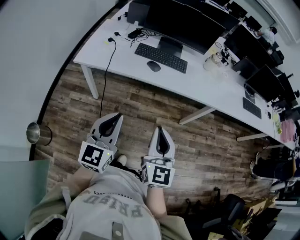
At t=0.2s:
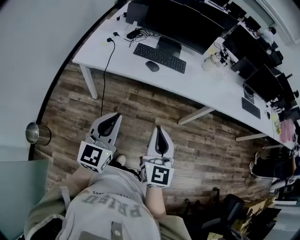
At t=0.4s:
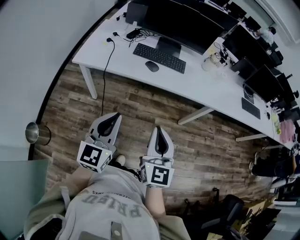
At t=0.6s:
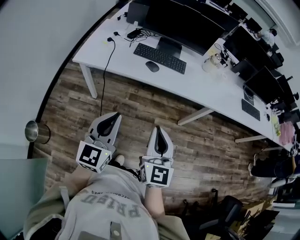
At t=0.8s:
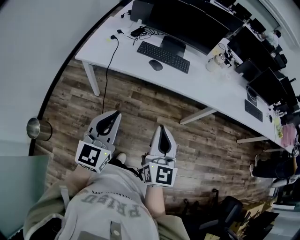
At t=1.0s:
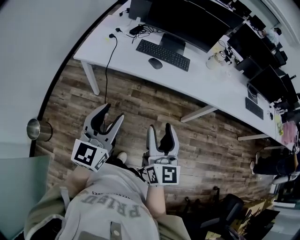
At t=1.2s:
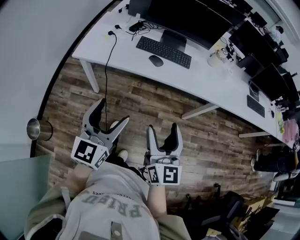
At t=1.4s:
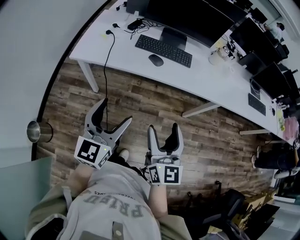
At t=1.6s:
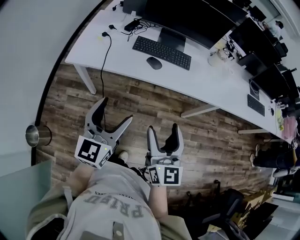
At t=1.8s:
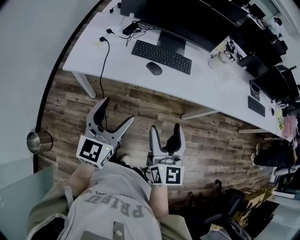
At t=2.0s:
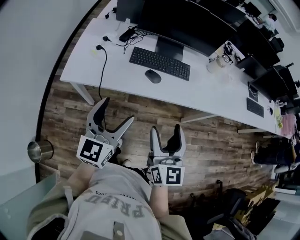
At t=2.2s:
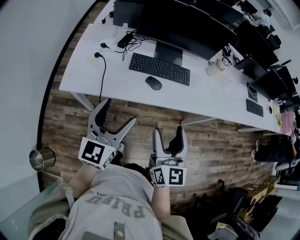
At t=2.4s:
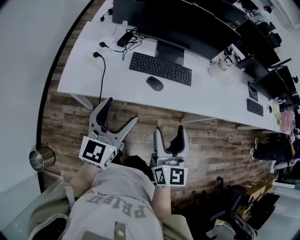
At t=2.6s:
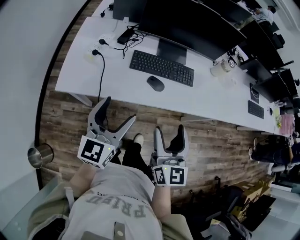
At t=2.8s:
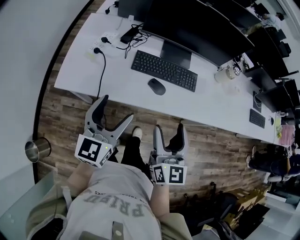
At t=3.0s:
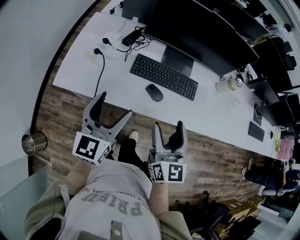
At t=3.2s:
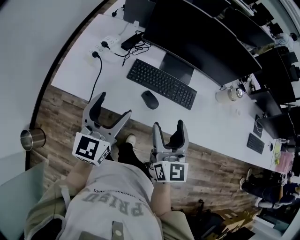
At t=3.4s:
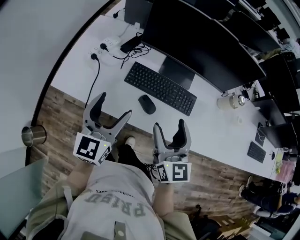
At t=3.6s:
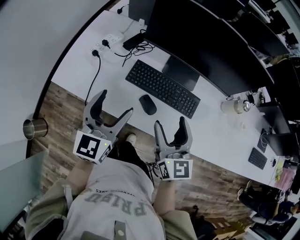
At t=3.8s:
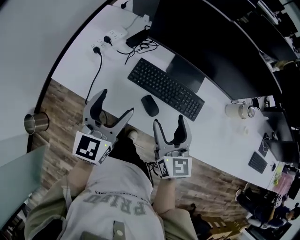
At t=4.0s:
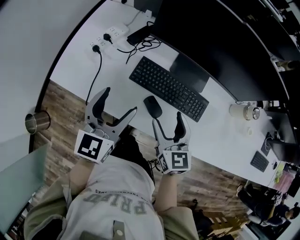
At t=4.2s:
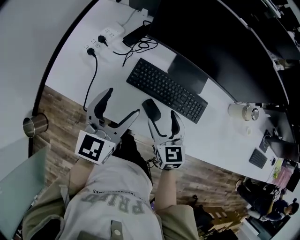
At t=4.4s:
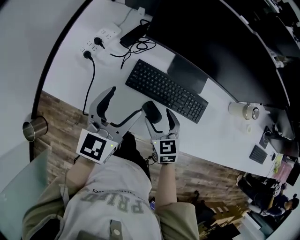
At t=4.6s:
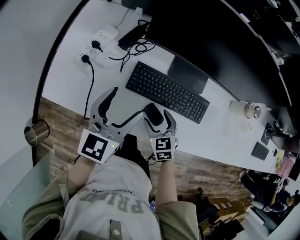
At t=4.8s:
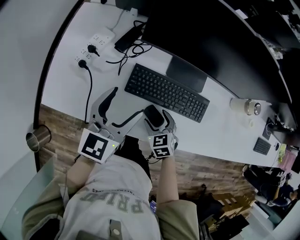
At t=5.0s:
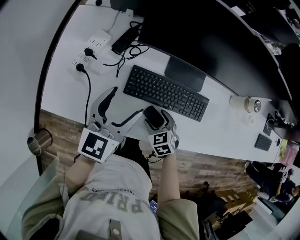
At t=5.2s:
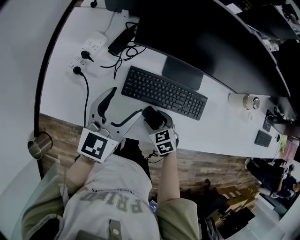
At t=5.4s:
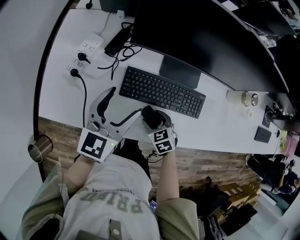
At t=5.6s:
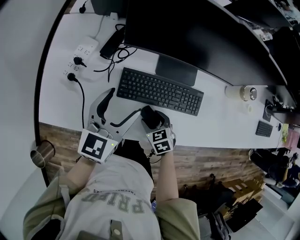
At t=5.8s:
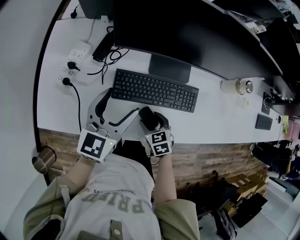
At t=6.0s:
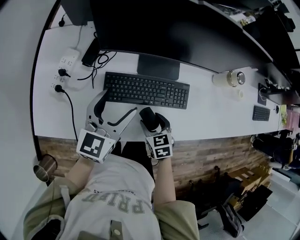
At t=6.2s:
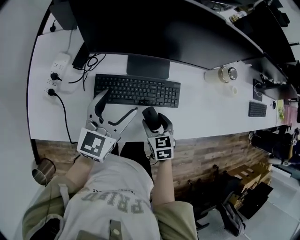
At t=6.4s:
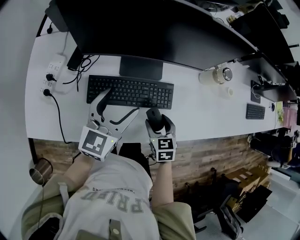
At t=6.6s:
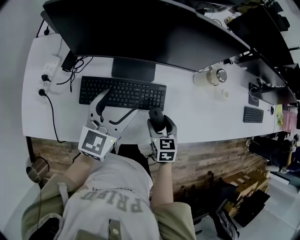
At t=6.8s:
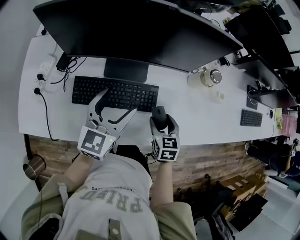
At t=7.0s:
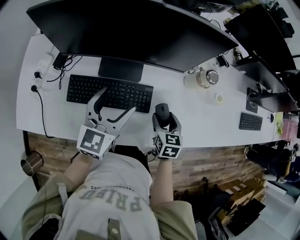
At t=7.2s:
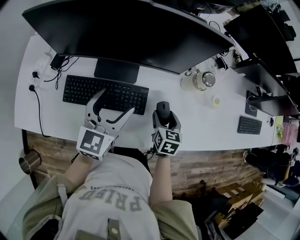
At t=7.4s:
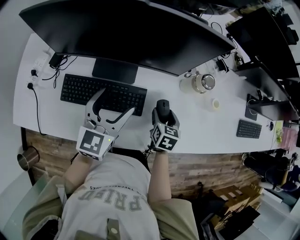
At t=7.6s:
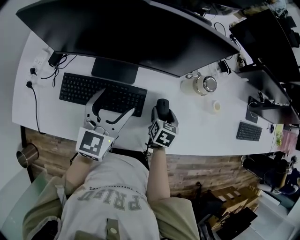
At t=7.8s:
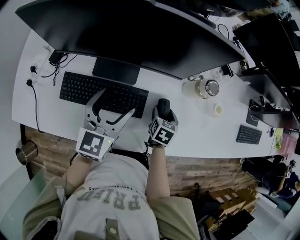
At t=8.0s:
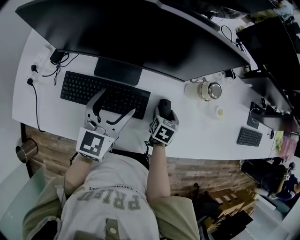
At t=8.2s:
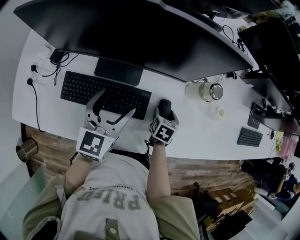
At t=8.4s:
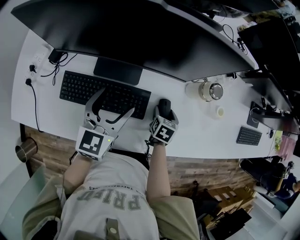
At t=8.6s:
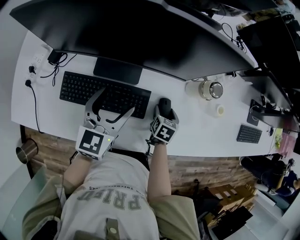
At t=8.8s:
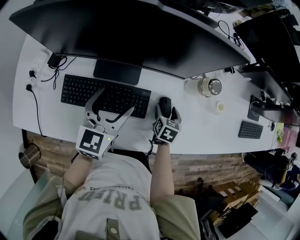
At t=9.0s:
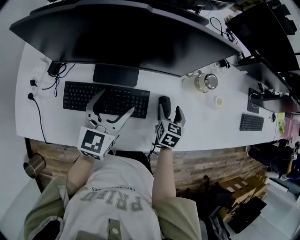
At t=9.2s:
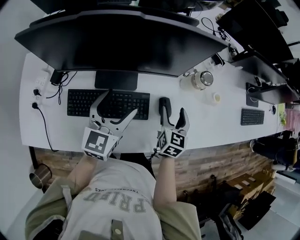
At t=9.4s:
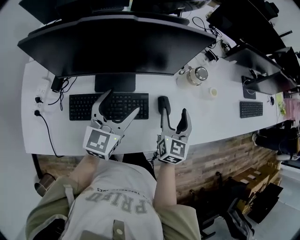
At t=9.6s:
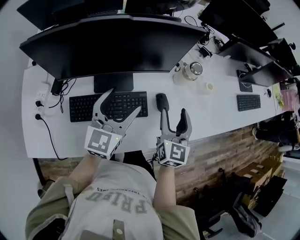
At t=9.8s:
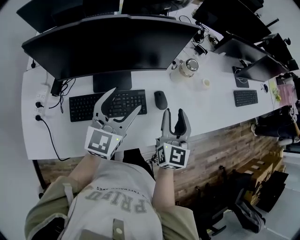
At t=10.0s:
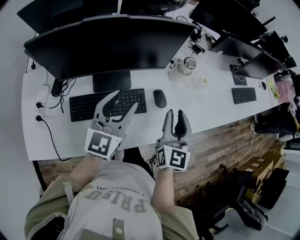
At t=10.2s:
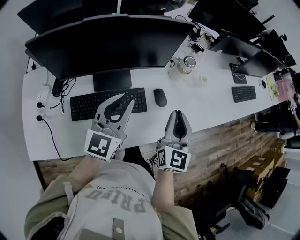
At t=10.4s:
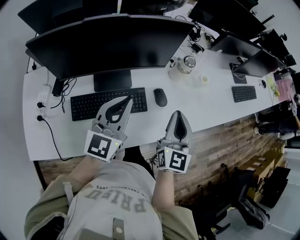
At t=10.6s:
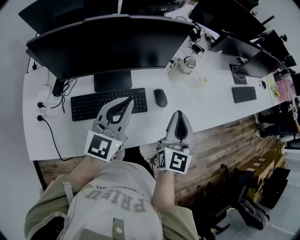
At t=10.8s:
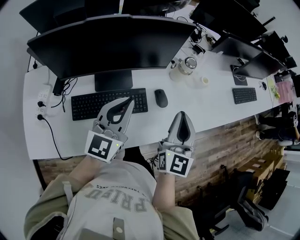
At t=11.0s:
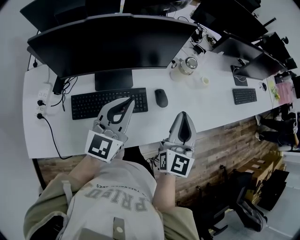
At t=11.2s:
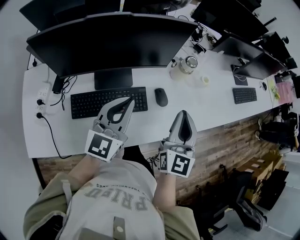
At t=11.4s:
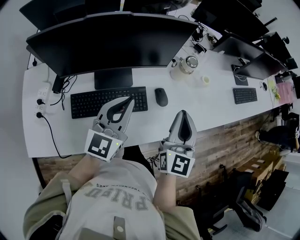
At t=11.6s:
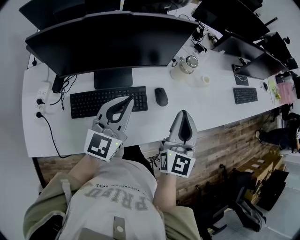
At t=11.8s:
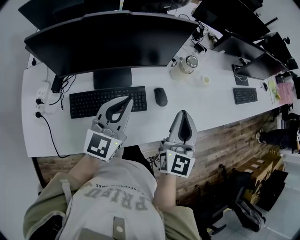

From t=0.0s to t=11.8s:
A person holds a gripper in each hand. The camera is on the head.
From t=0.0s to t=1.4s: The right gripper opens up. The left gripper heads forward, covering some 5 cm, and opens.
From t=1.4s to t=3.0s: The grippers both shift forward by some 30 cm.
From t=3.0s to t=4.4s: The left gripper travels forward by approximately 15 cm; the right gripper moves downward and forward, about 25 cm, and points its fingers some 30 degrees further downward.
From t=4.4s to t=6.0s: The left gripper heads to the right, covering some 5 cm; the right gripper shifts about 5 cm downward, and swivels roughly 20 degrees.
From t=6.0s to t=7.4s: The left gripper heads to the right, covering about 20 cm. The right gripper is displaced to the right and forward by some 30 cm, and turns by approximately 30 degrees.
From t=7.4s to t=8.8s: The right gripper moves downward, some 5 cm.
From t=8.8s to t=10.4s: The left gripper travels upward by approximately 15 cm, swivels about 30 degrees, and closes its fingers. The right gripper heads upward and backward, covering roughly 30 cm, angles its fingers upward, by roughly 50 degrees, and closes up.
From t=10.4s to t=11.8s: The grippers make only small movements.

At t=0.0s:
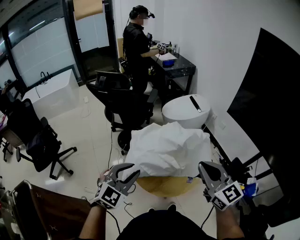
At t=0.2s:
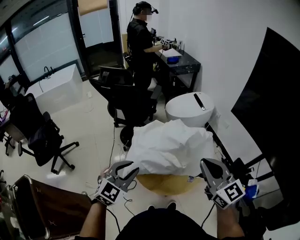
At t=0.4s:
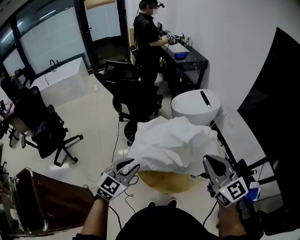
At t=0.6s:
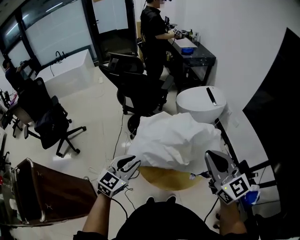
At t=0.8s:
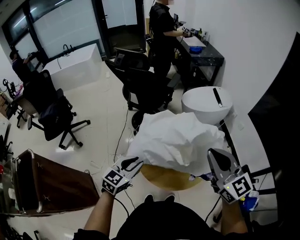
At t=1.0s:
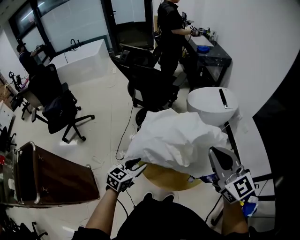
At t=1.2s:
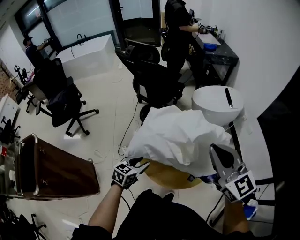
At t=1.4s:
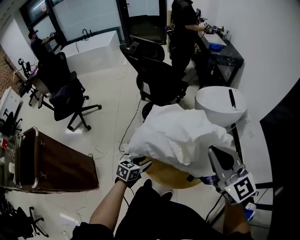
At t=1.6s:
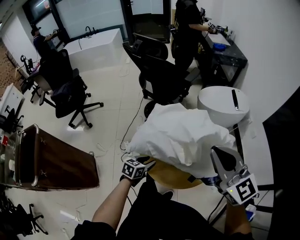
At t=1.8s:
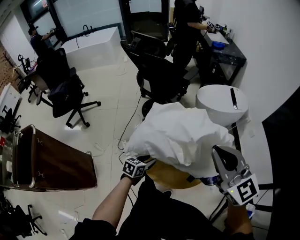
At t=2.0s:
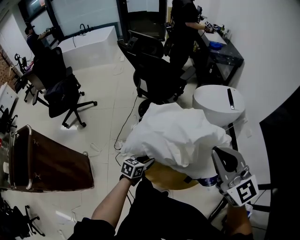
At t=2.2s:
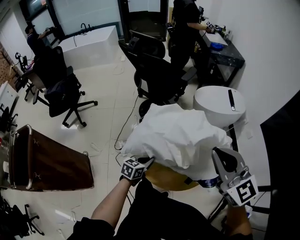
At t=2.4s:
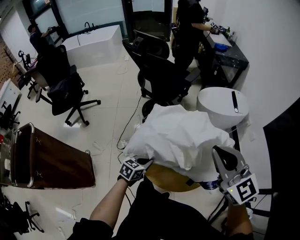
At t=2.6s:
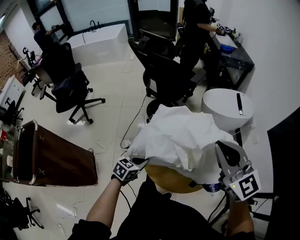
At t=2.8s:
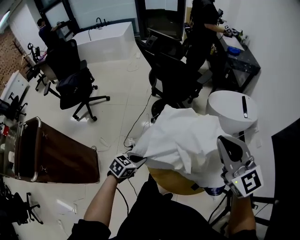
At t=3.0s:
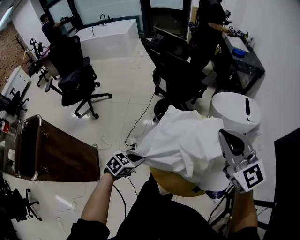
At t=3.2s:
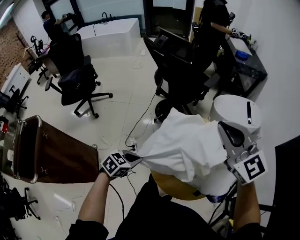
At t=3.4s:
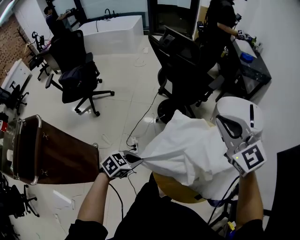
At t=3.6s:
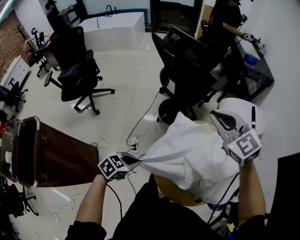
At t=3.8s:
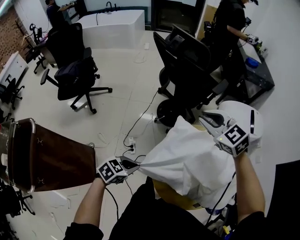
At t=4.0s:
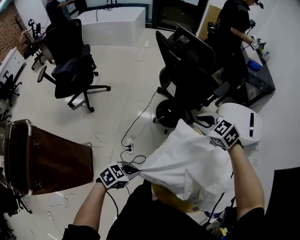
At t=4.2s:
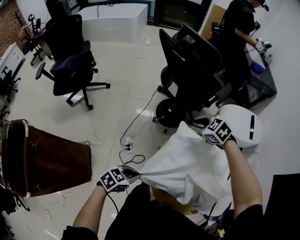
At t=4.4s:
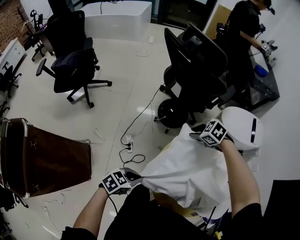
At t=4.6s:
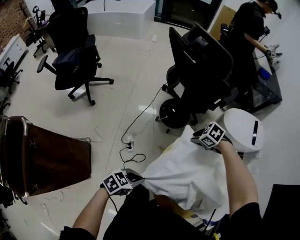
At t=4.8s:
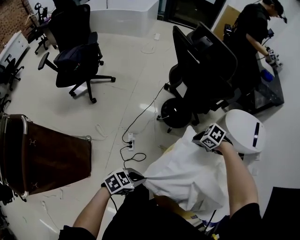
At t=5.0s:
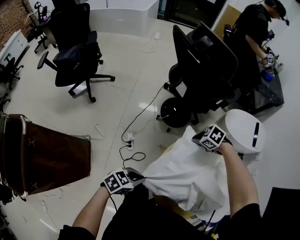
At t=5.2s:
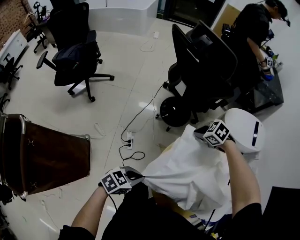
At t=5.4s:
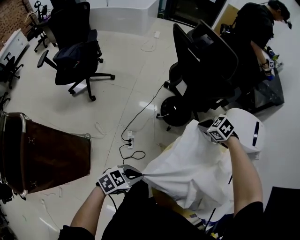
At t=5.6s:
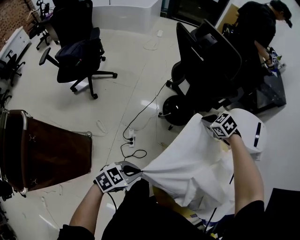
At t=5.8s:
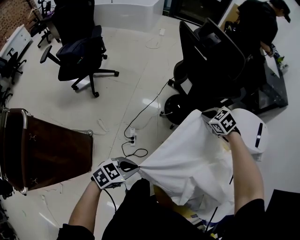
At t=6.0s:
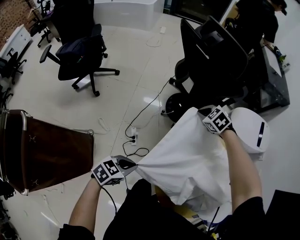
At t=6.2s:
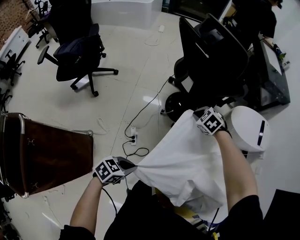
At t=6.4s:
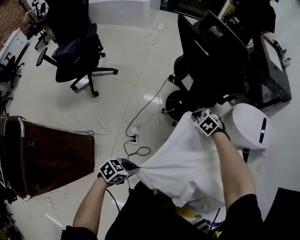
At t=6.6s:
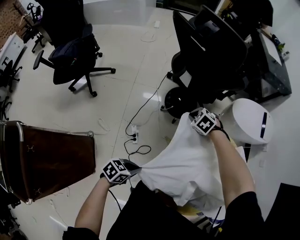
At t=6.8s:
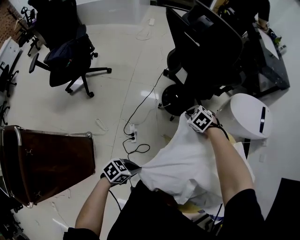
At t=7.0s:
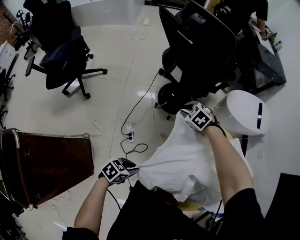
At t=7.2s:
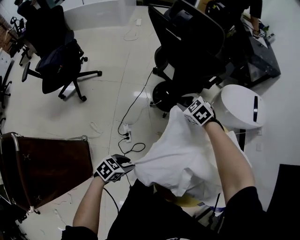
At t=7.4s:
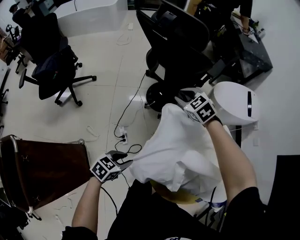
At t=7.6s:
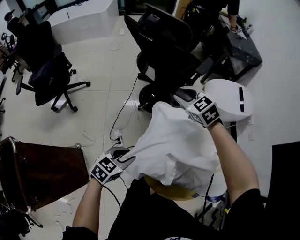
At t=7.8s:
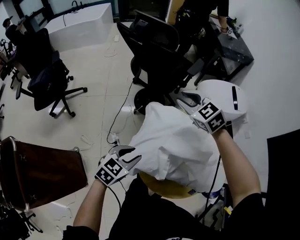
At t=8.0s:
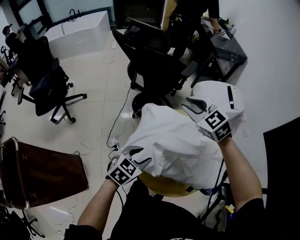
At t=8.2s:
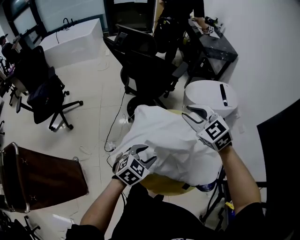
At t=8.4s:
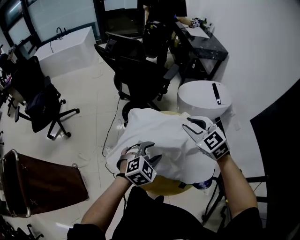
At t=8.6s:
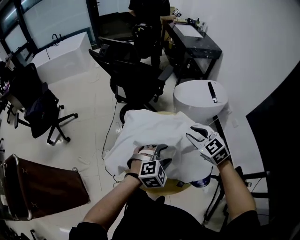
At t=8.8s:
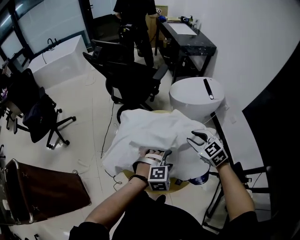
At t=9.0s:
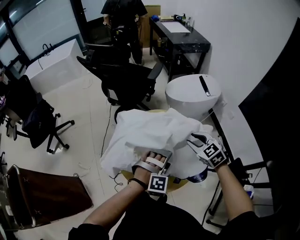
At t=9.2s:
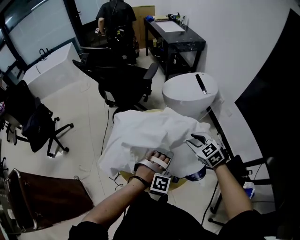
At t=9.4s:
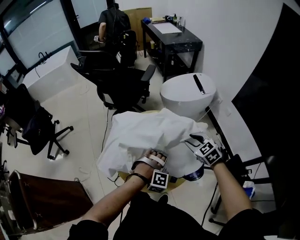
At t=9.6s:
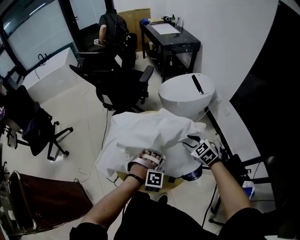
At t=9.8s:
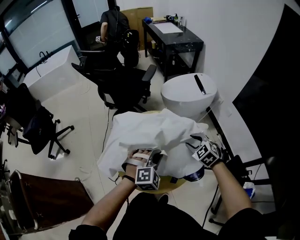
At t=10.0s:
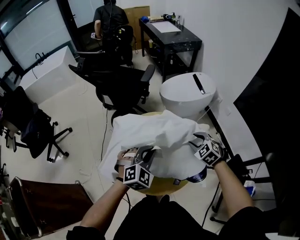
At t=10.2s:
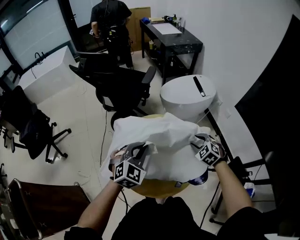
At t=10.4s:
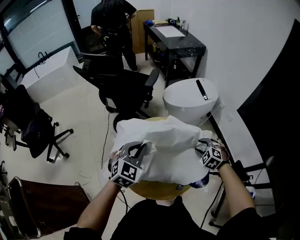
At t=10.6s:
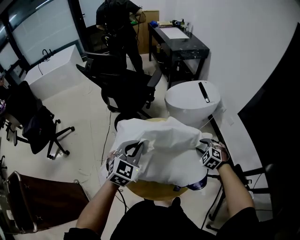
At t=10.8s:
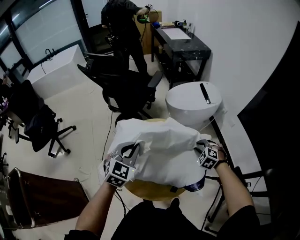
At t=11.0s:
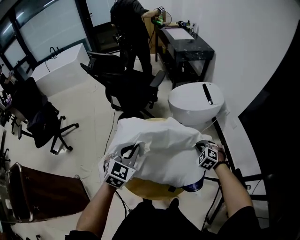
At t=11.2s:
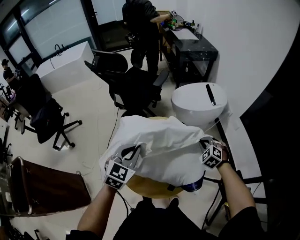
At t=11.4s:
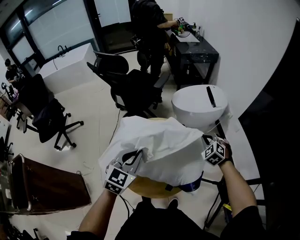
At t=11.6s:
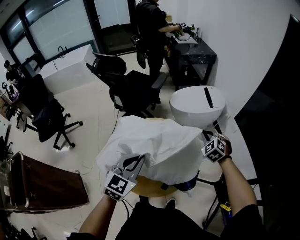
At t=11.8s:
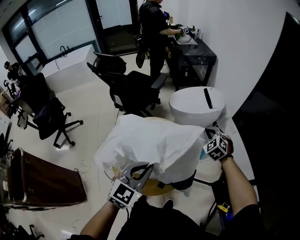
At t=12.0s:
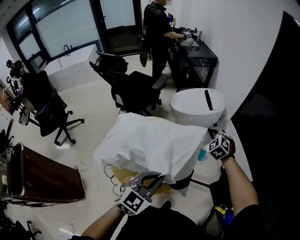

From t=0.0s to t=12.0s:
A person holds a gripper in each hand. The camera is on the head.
From t=0.0s to t=1.6s: The right gripper travels forward by roughly 10 cm, and rotates roughly 30 degrees; the left gripper goes roughly 25 cm downward, and twists roughly 60 degrees counterclockwise, seen from behind.
From t=1.6s to t=3.0s: The left gripper moves to the left and upward, some 10 cm, and closes its fingers. Meanwhile the right gripper goes roughly 10 cm forward and to the left.
From t=3.0s to t=4.4s: The left gripper changes place by some 10 cm. Meanwhile the right gripper shifts roughly 35 cm downward, points its fingers some 60 degrees further downward, and opens.
From t=4.4s to t=6.0s: The right gripper ends up about 10 cm from where it was, and closes. Meanwhile the left gripper changes place by about 10 cm.
From t=6.0s to t=7.6s: The left gripper moves roughly 10 cm downward and comes back, and opens up; the right gripper moves upward, approximately 10 cm, swivels about 30 degrees, and opens.
From t=7.6s to t=9.0s: The right gripper heads to the right and backward, covering about 40 cm, and turns by roughly 20 degrees. The left gripper travels to the right by some 35 cm, twists roughly 80 degrees clockwise, seen from behind, and opens its fingers.
From t=9.0s to t=10.4s: The right gripper shifts some 10 cm downward and to the right, and rotates some 30 degrees. The left gripper shifts roughly 20 cm to the left, forward and upward, rotates around the line of its fingers by roughly 50 degrees, counterclockwise from behind, and closes.
From t=10.4s to t=12.0s: The left gripper travels to the right and backward by roughly 25 cm. Meanwhile the right gripper is displaced to the right, upward and forward by approximately 15 cm, and closes.
